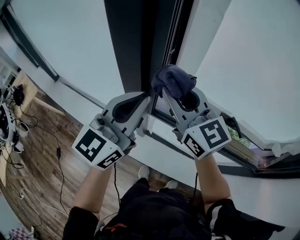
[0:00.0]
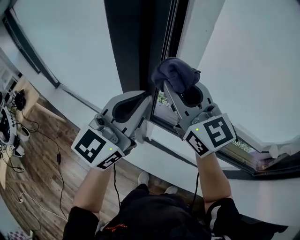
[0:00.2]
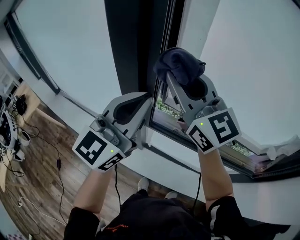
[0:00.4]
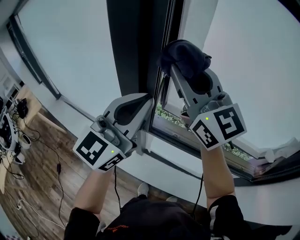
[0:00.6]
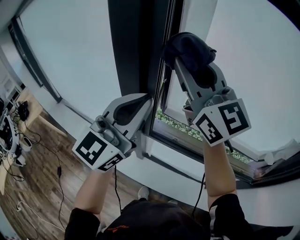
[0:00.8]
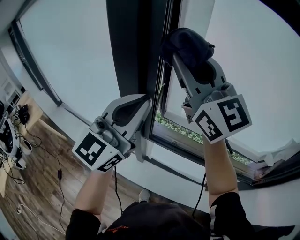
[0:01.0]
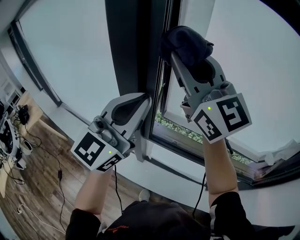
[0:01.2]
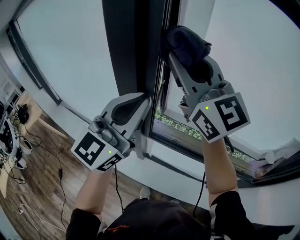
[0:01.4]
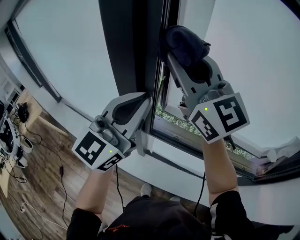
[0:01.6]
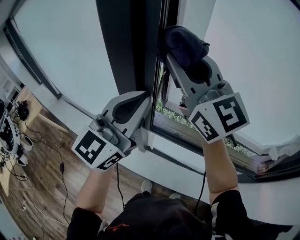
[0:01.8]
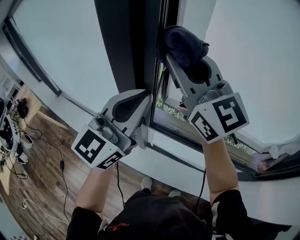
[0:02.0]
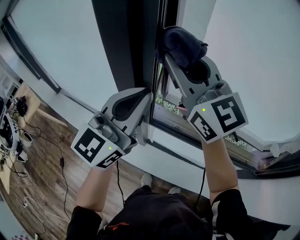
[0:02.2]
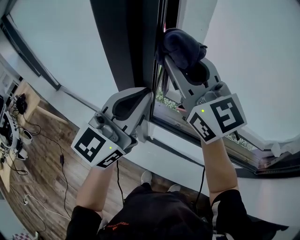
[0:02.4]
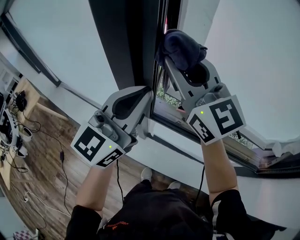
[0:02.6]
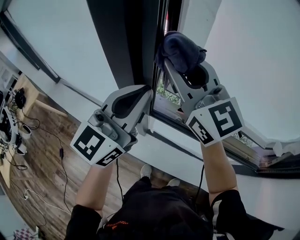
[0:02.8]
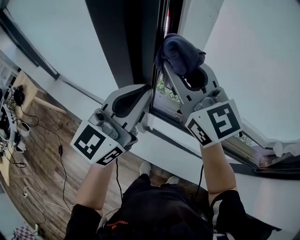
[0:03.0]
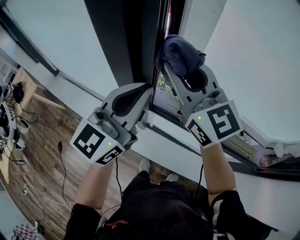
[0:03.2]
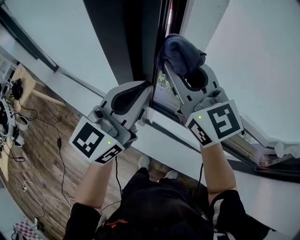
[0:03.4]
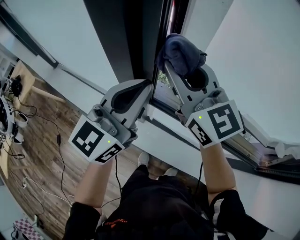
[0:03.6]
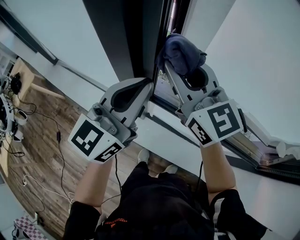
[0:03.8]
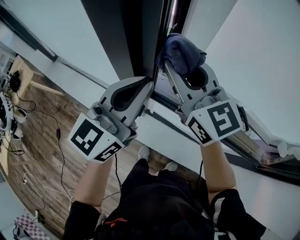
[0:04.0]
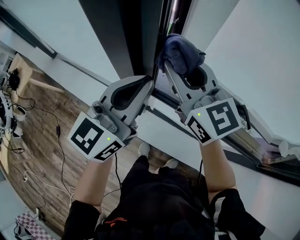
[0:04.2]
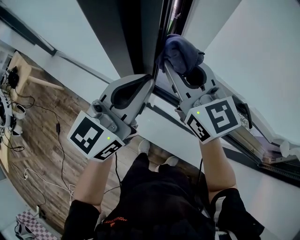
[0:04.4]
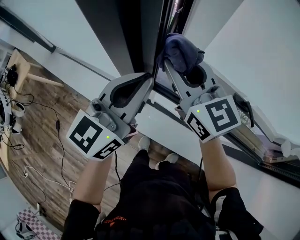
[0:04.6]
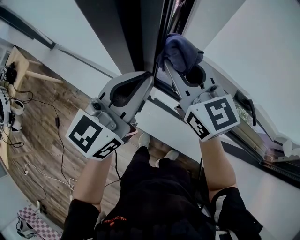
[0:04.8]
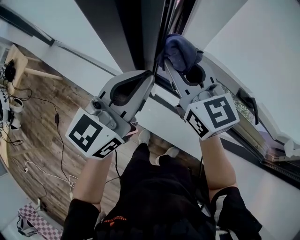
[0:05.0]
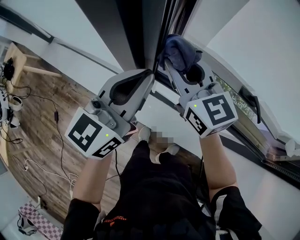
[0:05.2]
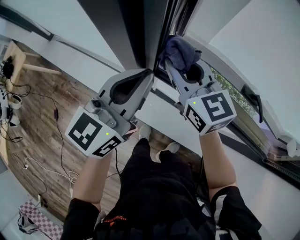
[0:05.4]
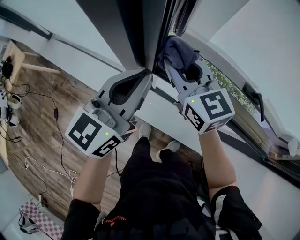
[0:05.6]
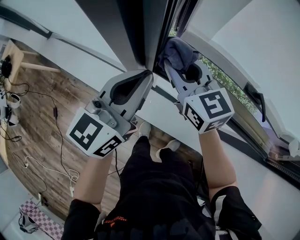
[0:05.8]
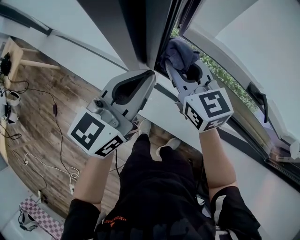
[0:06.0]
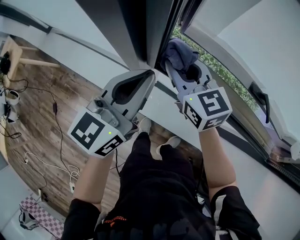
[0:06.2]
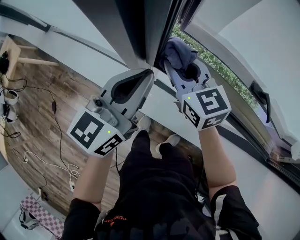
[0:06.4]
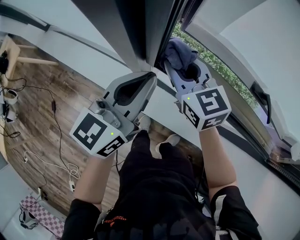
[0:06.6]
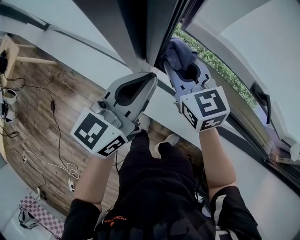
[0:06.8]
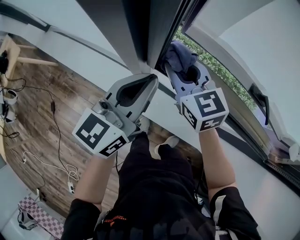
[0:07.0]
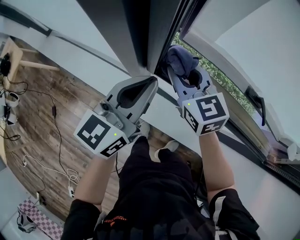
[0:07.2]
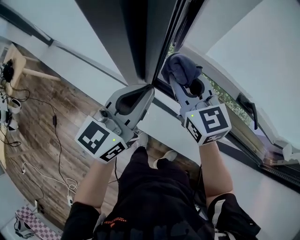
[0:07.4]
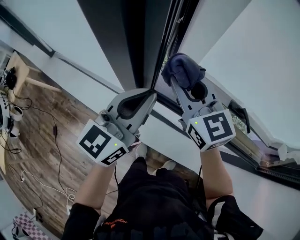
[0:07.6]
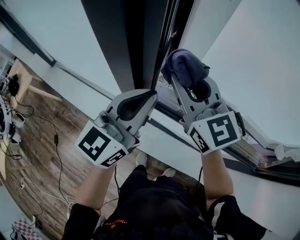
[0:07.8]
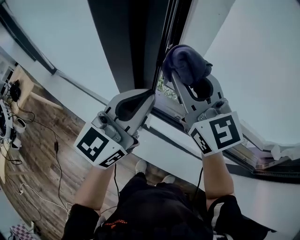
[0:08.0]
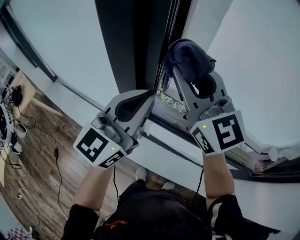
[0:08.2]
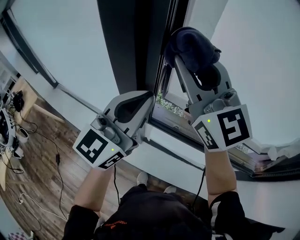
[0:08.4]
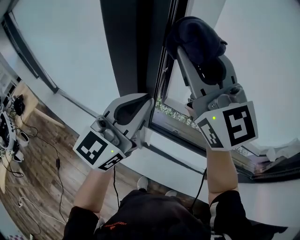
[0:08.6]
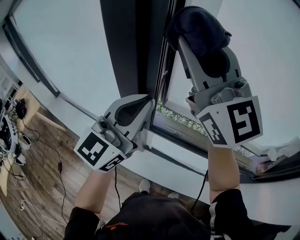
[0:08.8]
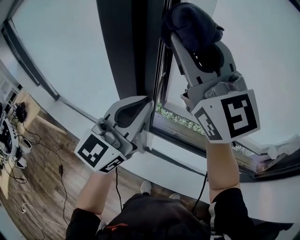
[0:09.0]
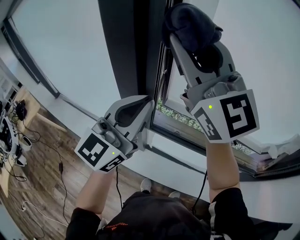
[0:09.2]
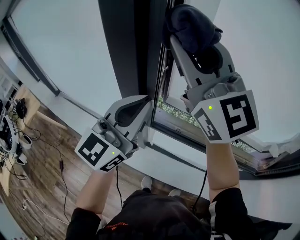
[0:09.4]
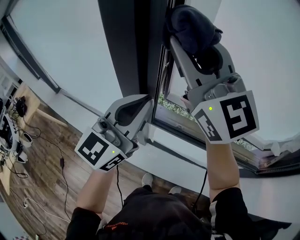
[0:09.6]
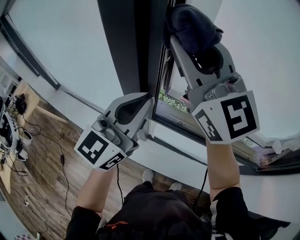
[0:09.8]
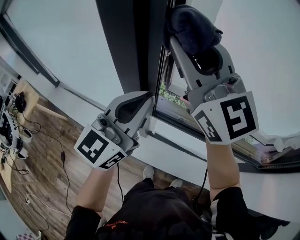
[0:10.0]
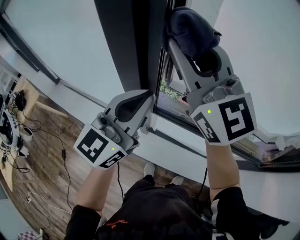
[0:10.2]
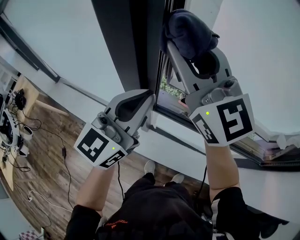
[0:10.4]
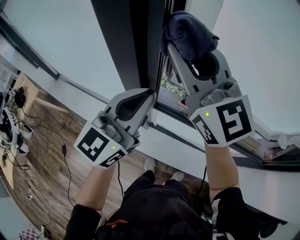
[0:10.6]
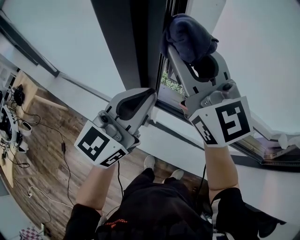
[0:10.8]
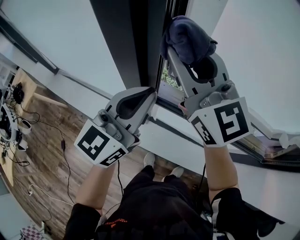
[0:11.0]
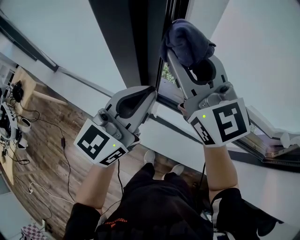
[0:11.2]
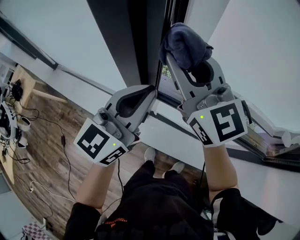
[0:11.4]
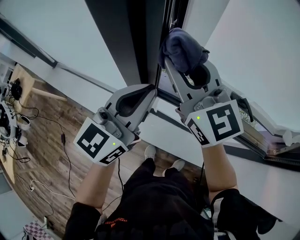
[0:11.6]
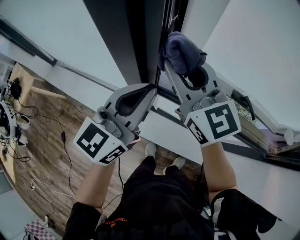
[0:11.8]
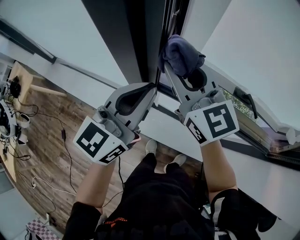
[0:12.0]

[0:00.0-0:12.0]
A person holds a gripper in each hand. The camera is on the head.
0:00.0 to 0:01.6: The left gripper goes approximately 10 cm upward. The right gripper travels upward by some 20 cm, and rotates some 20 degrees.
0:01.6 to 0:03.0: The left gripper shifts approximately 10 cm downward; the right gripper heads downward, covering roughly 15 cm.
0:03.0 to 0:04.4: The right gripper moves downward, some 10 cm; the left gripper goes about 10 cm downward.
0:04.4 to 0:06.0: The right gripper travels downward by some 15 cm; the left gripper heads downward, covering approximately 10 cm.
0:06.0 to 0:07.6: The left gripper shifts about 5 cm upward. Meanwhile the right gripper heads upward, covering approximately 10 cm.
0:07.6 to 0:09.0: The left gripper is displaced upward by roughly 20 cm, and rotates roughly 20 degrees, while the right gripper travels upward by some 35 cm, and angles its fingers upward, by some 30 degrees.
0:09.0 to 0:10.4: The left gripper is displaced downward by some 5 cm. Meanwhile the right gripper travels downward by roughly 10 cm.
0:10.4 to 0:12.0: The left gripper is displaced downward by some 10 cm. Meanwhile the right gripper goes some 20 cm downward.

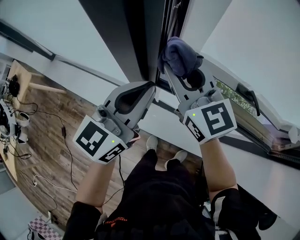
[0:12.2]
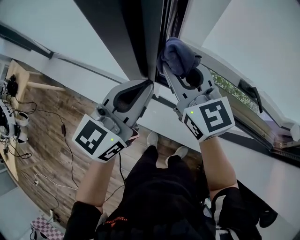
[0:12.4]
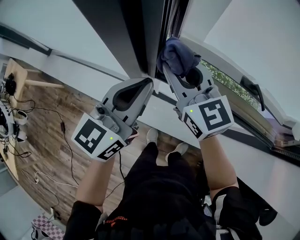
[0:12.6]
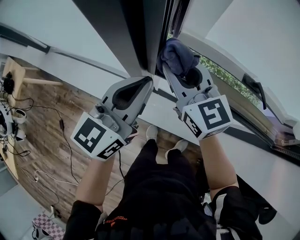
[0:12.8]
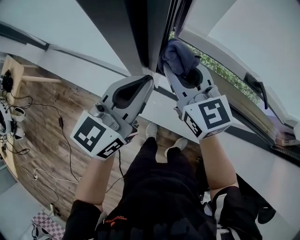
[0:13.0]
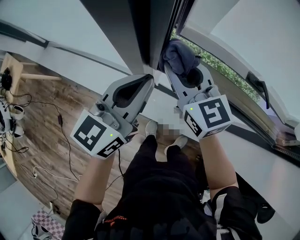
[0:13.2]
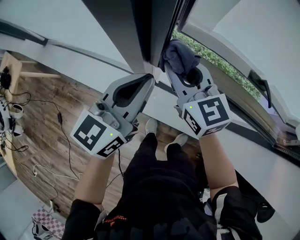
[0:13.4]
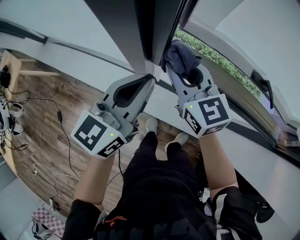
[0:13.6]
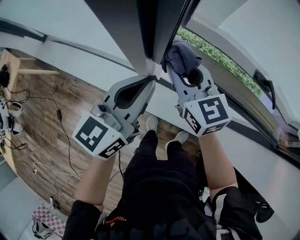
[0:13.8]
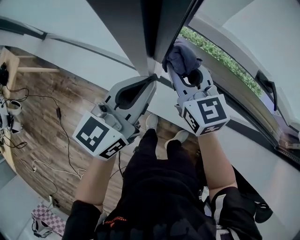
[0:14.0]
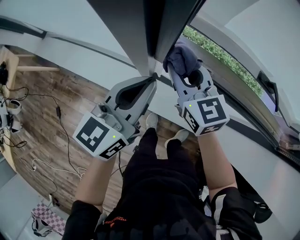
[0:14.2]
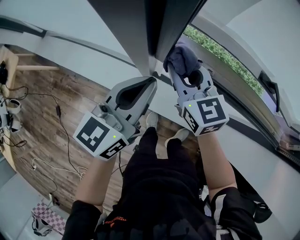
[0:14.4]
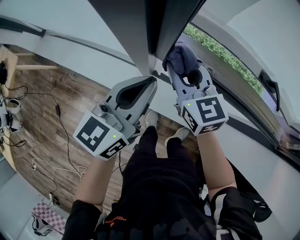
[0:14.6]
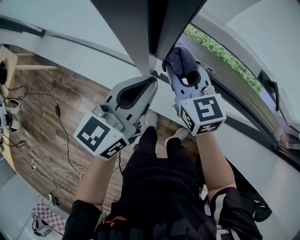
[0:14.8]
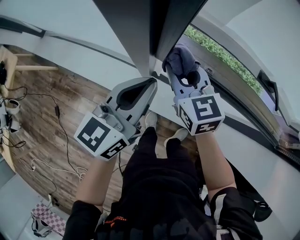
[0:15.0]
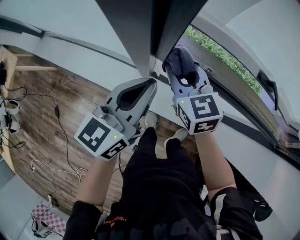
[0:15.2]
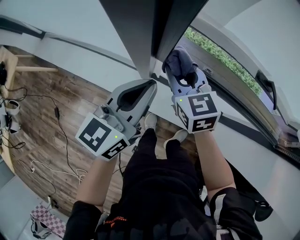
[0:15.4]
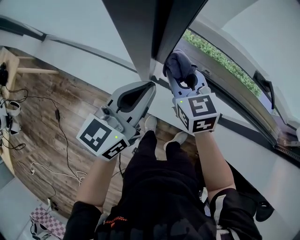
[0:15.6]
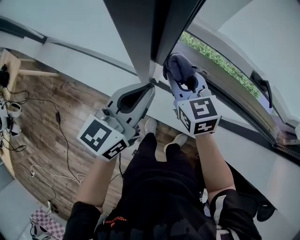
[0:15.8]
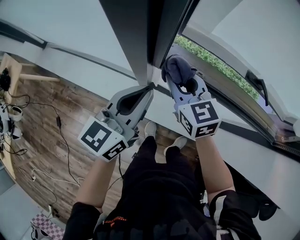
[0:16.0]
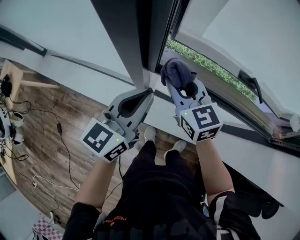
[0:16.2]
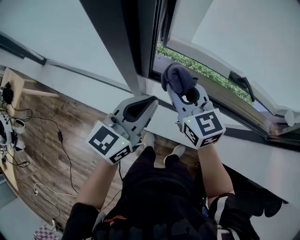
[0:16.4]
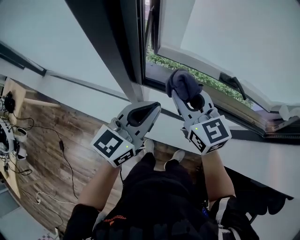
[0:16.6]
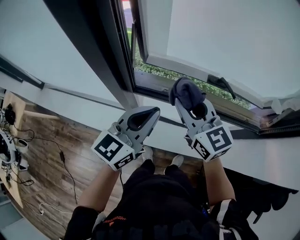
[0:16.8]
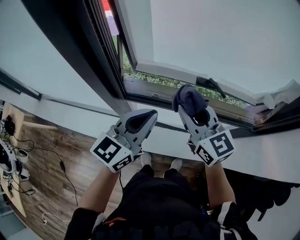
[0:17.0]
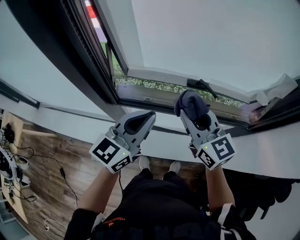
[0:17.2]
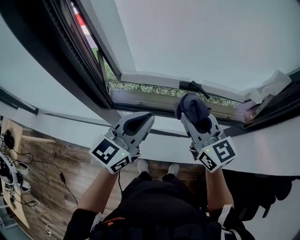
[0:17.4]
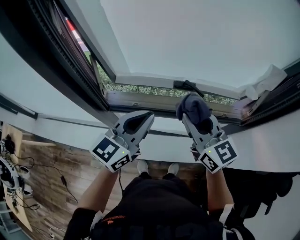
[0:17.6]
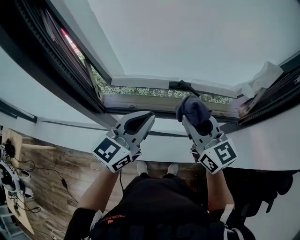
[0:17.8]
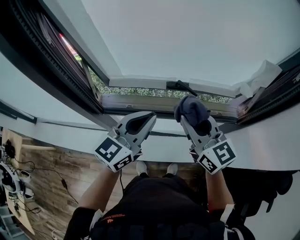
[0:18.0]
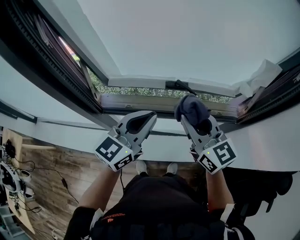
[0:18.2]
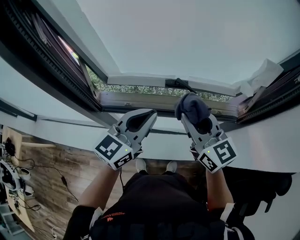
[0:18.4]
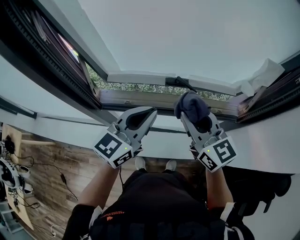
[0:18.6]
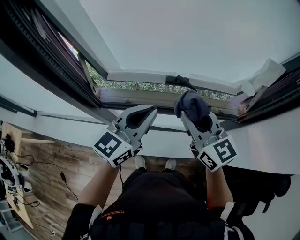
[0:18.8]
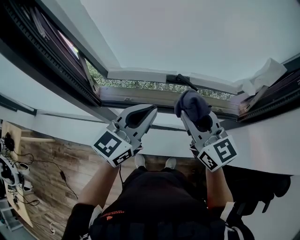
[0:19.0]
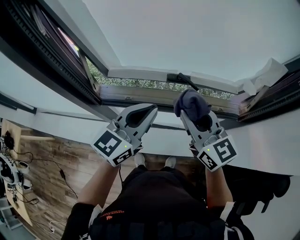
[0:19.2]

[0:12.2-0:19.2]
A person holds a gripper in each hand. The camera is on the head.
0:12.2 to 0:13.6: Both grippers travel together downward, about 10 cm.
0:13.6 to 0:15.0: The right gripper travels downward by some 5 cm.
0:15.0 to 0:16.4: The right gripper heads upward, covering some 10 cm; the left gripper travels upward by roughly 5 cm.
0:16.4 to 0:17.8: The grippers both shift to the right and upward by about 25 cm.
0:17.8 to 0:19.2: The grippers stay close to where they were, moving slightly.

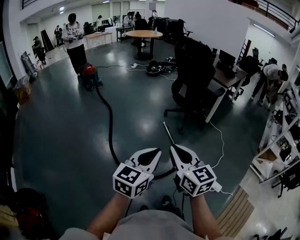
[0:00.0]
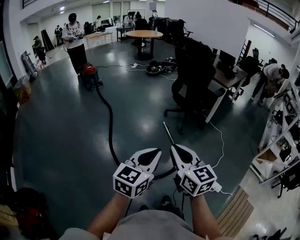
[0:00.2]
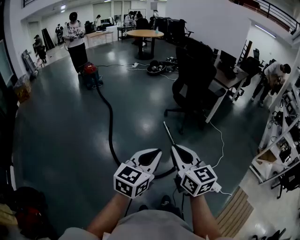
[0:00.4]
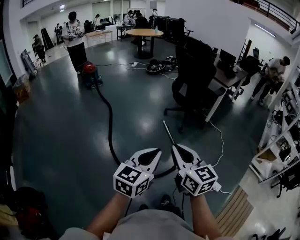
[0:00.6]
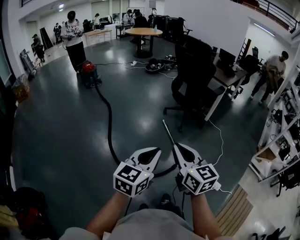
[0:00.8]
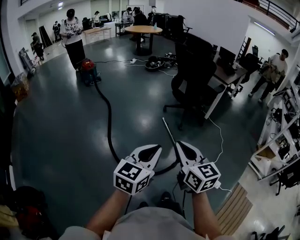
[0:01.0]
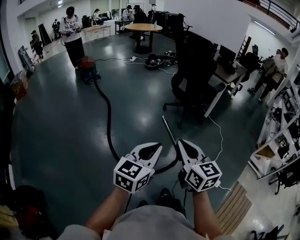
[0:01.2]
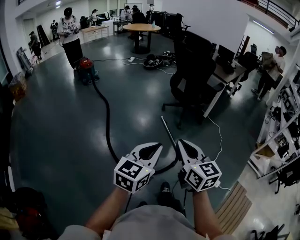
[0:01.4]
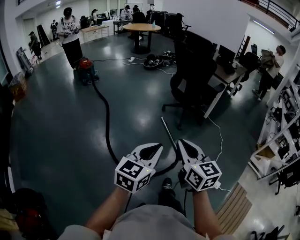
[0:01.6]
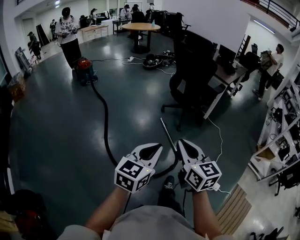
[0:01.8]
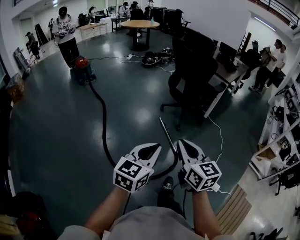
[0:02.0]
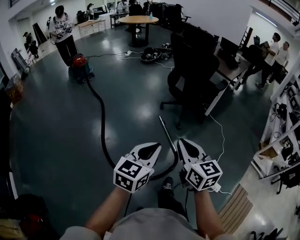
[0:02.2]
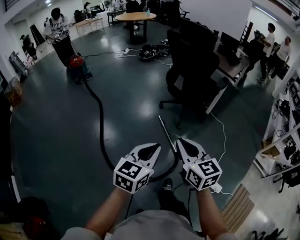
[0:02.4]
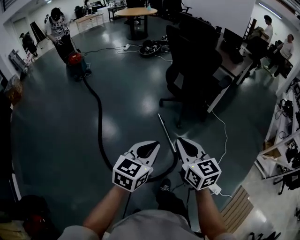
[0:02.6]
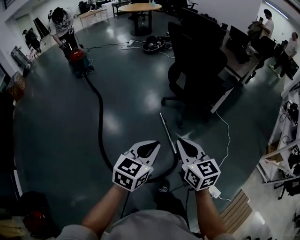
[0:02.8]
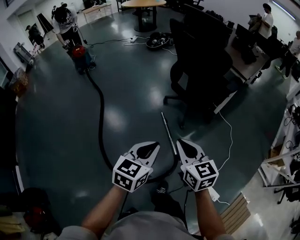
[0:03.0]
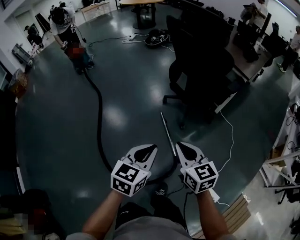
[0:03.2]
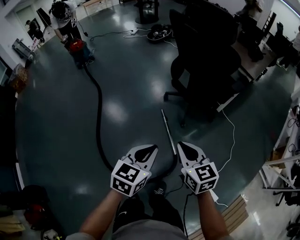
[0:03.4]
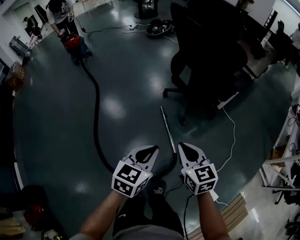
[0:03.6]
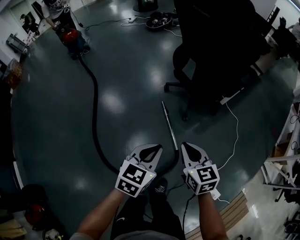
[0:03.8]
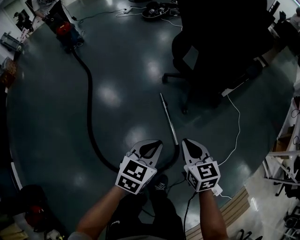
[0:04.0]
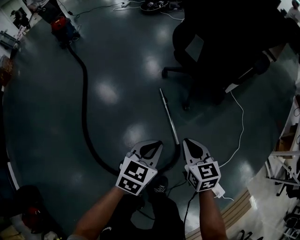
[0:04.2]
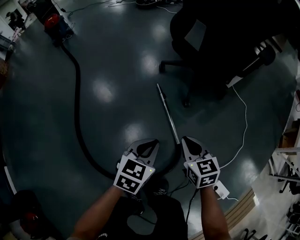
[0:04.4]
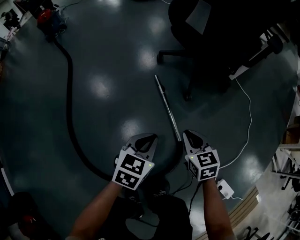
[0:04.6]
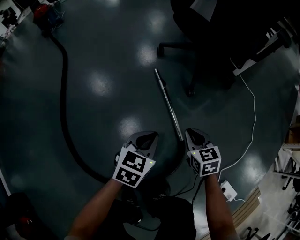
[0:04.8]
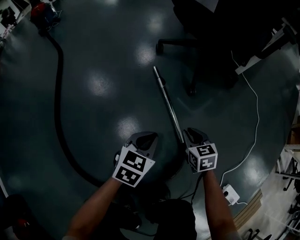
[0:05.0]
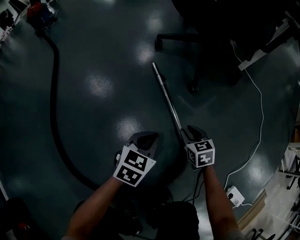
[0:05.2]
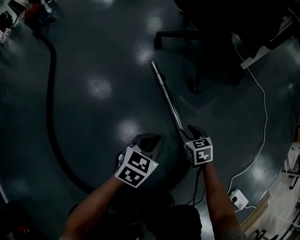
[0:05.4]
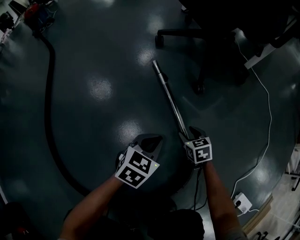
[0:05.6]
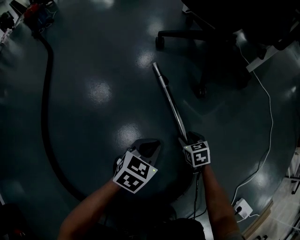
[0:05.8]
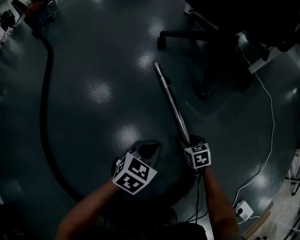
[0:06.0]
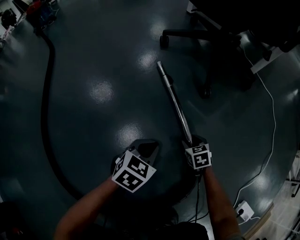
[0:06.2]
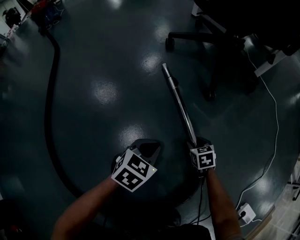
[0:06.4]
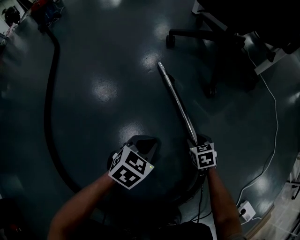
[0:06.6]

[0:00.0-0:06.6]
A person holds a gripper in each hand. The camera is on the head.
0:00.0 to 0:01.6: The right gripper changes place by some 5 cm.
0:01.6 to 0:03.2: Both grippers are carried forward, about 40 cm.
0:03.2 to 0:05.0: Both grippers travel together downward, approximately 70 cm. The right gripper changes its angle by approximately 30 degrees.
0:05.0 to 0:06.6: The two grippers go approximately 20 cm downward. The right gripper opens up.
